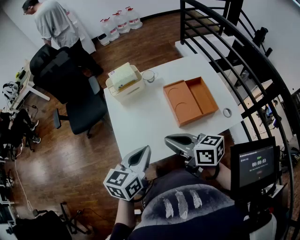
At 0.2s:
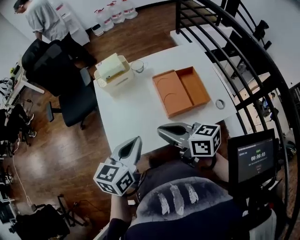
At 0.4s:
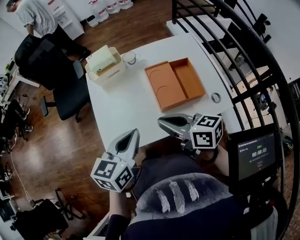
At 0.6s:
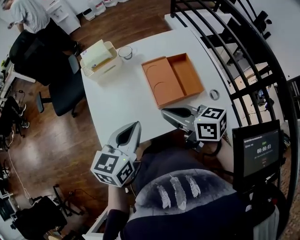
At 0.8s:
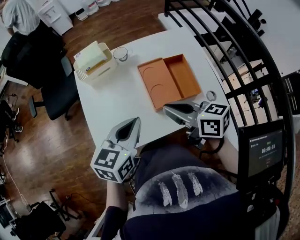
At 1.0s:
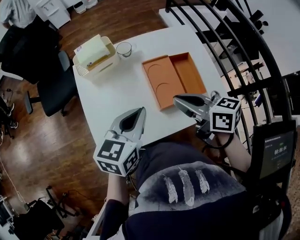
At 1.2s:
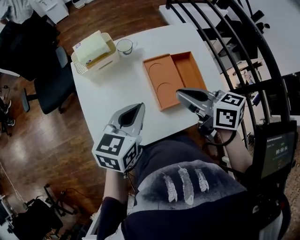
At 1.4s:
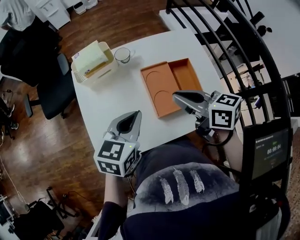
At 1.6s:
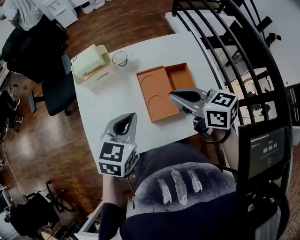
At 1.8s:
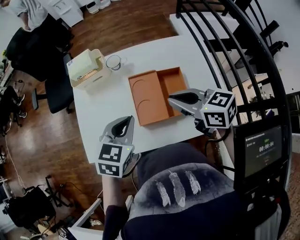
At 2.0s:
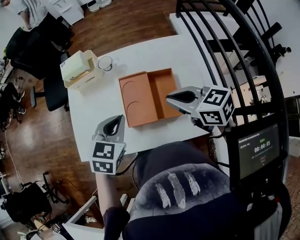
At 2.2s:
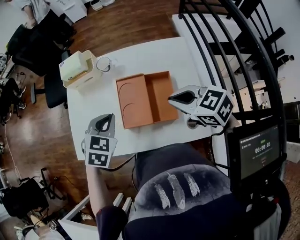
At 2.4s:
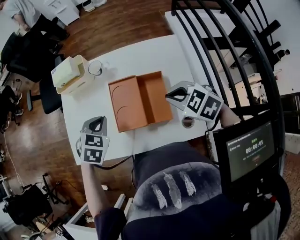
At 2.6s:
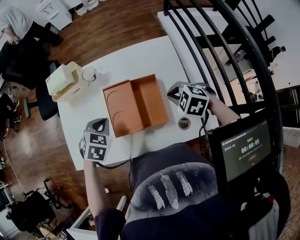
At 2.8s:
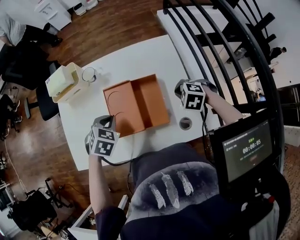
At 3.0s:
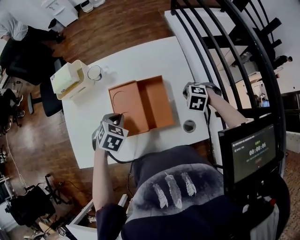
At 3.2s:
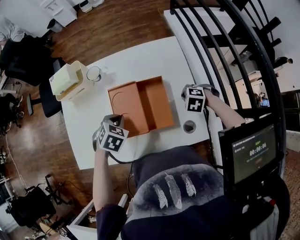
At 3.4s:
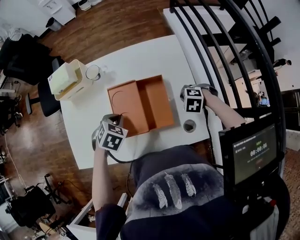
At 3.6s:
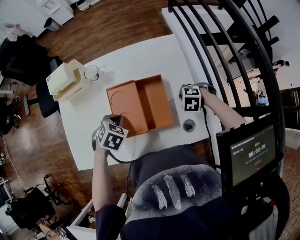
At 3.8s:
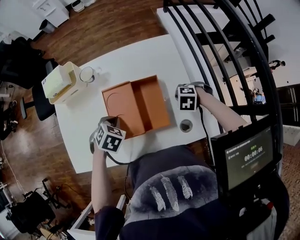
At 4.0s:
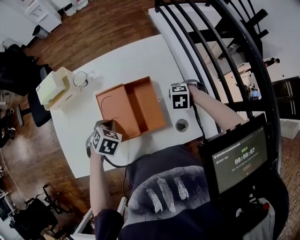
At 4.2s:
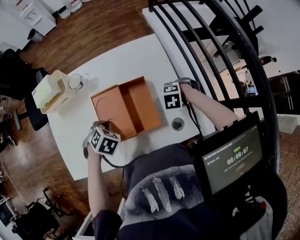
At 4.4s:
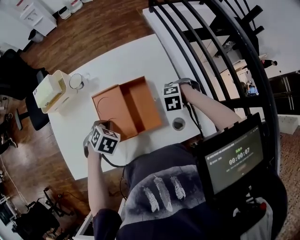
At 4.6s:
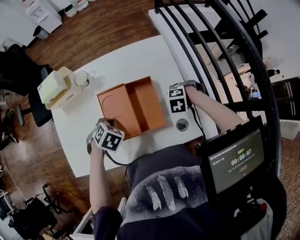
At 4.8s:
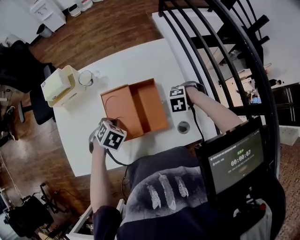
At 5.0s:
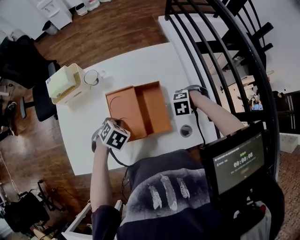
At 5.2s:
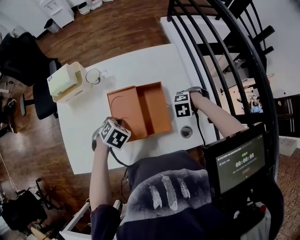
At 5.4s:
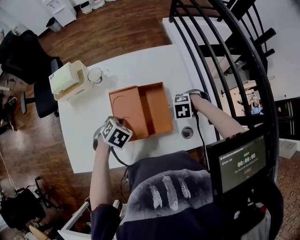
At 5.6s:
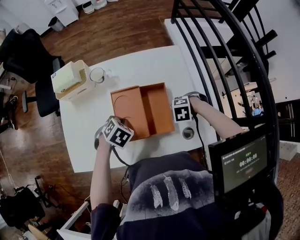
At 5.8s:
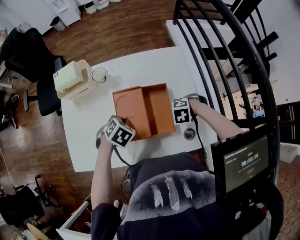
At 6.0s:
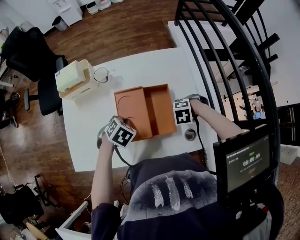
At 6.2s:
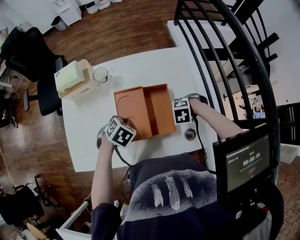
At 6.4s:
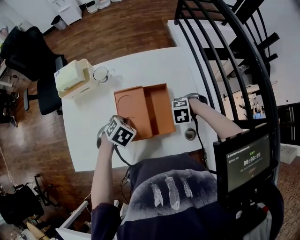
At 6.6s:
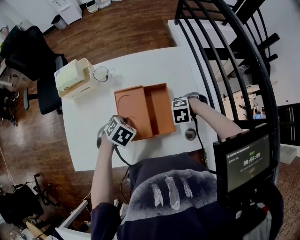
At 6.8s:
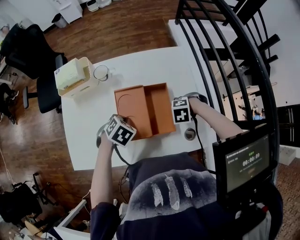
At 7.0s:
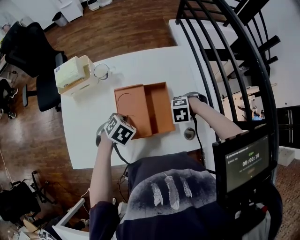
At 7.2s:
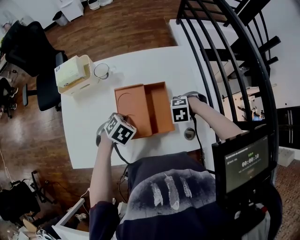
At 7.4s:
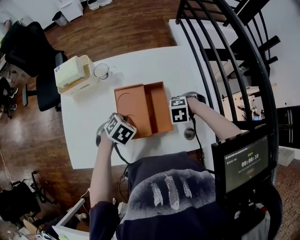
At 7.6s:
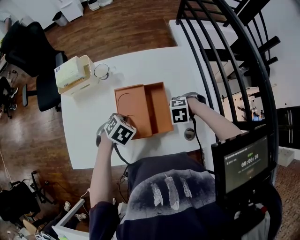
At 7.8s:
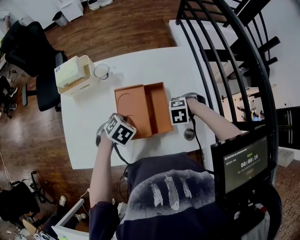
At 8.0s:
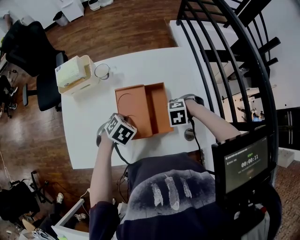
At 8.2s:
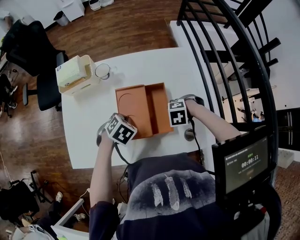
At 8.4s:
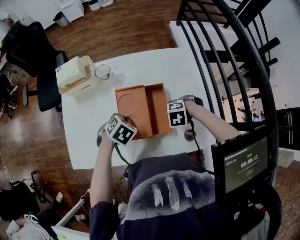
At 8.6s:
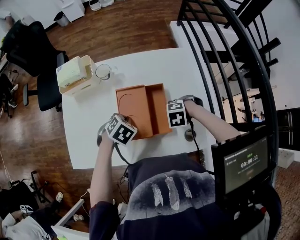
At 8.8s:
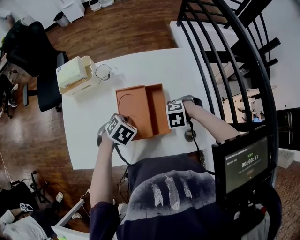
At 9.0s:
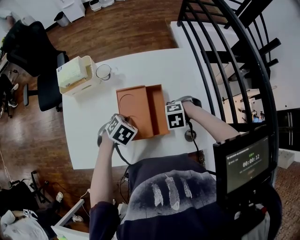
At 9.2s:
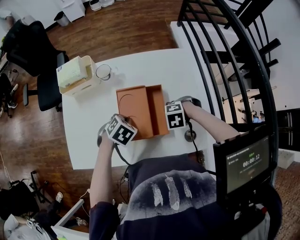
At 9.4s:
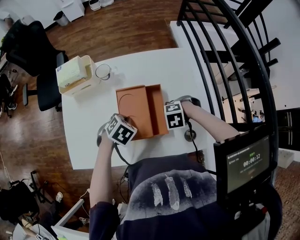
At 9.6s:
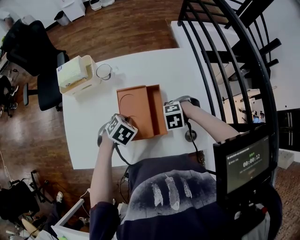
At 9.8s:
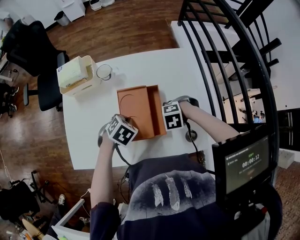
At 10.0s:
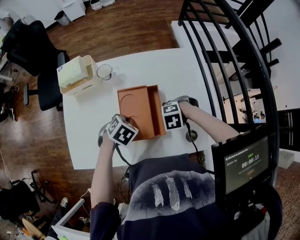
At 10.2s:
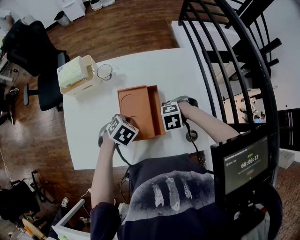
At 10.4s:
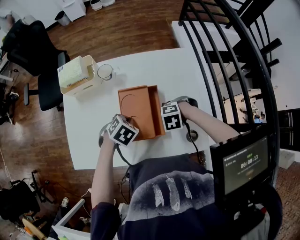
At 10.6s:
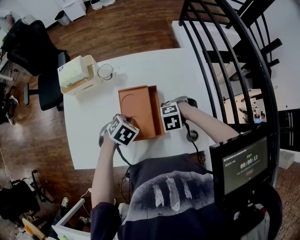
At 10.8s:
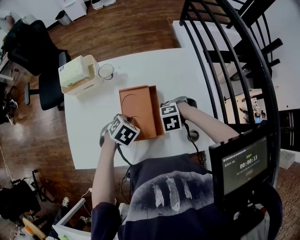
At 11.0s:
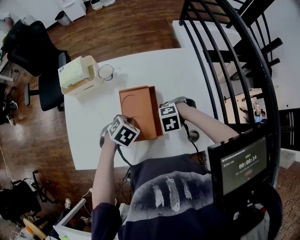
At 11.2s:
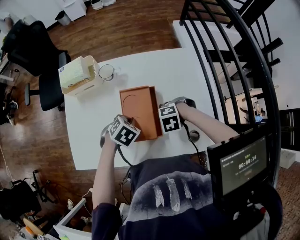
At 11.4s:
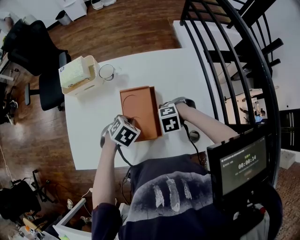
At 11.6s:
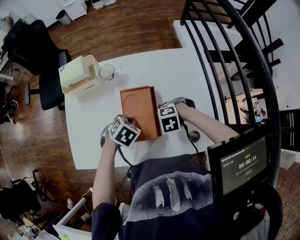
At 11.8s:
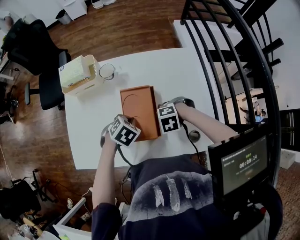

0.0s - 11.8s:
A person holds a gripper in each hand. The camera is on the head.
0.0s - 1.4s: The left gripper moves about 20 cm.
1.4s - 3.0s: The left gripper is displaced downward by some 15 cm, and tips its fingers downward by approximately 30 degrees.

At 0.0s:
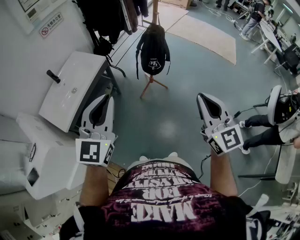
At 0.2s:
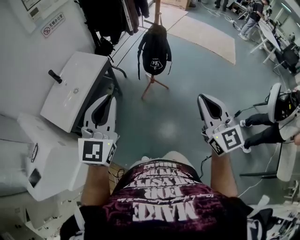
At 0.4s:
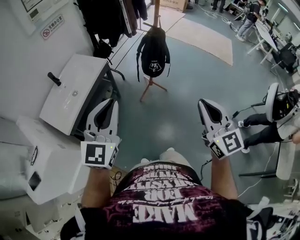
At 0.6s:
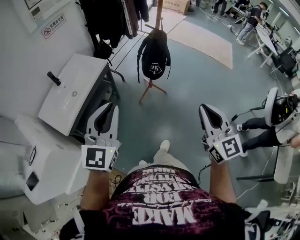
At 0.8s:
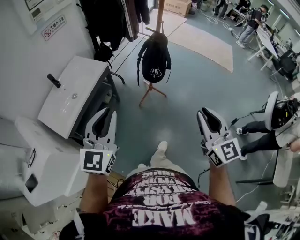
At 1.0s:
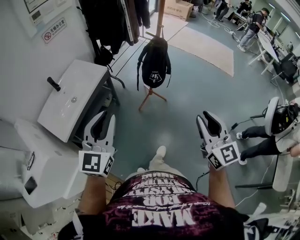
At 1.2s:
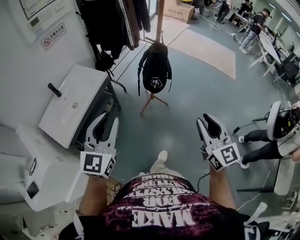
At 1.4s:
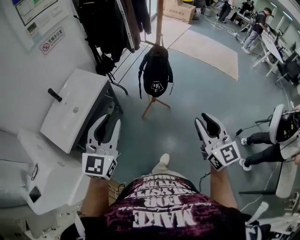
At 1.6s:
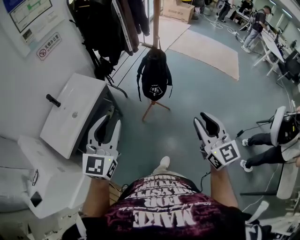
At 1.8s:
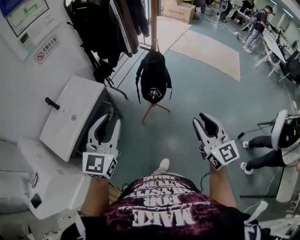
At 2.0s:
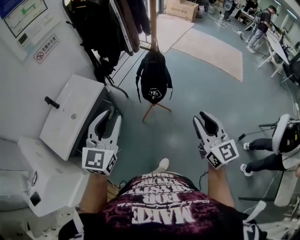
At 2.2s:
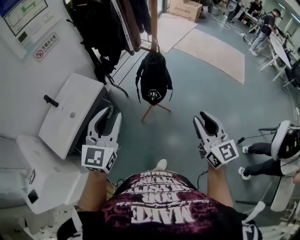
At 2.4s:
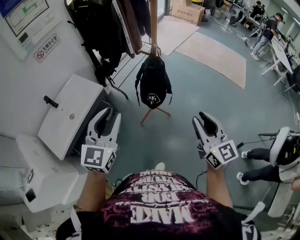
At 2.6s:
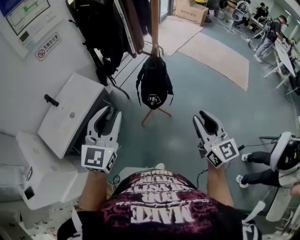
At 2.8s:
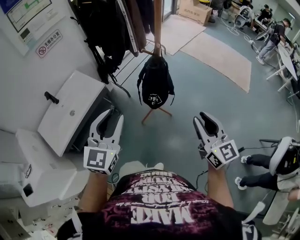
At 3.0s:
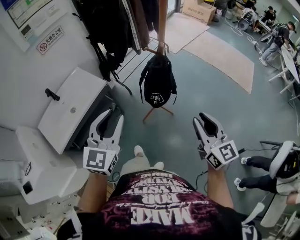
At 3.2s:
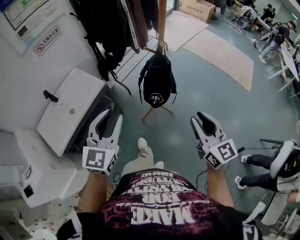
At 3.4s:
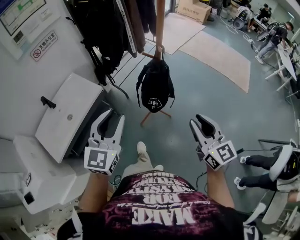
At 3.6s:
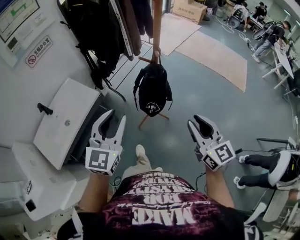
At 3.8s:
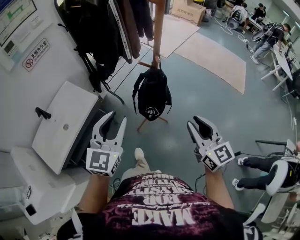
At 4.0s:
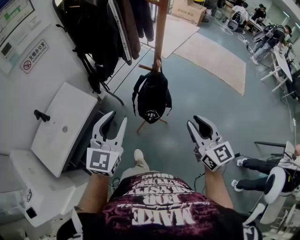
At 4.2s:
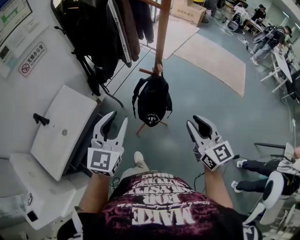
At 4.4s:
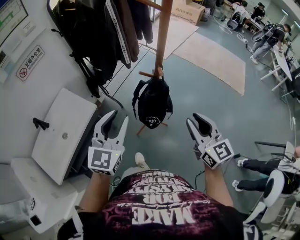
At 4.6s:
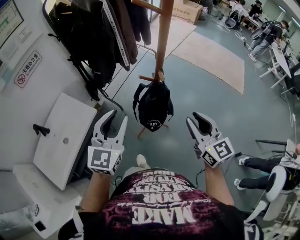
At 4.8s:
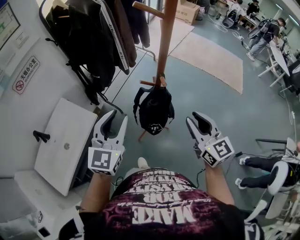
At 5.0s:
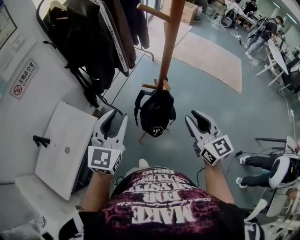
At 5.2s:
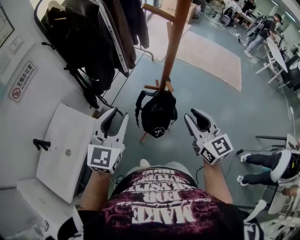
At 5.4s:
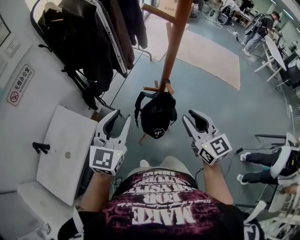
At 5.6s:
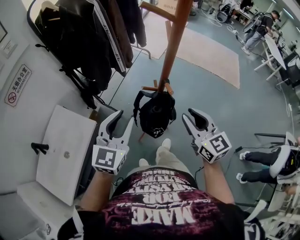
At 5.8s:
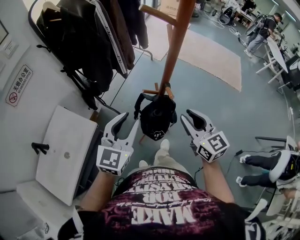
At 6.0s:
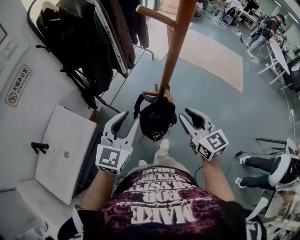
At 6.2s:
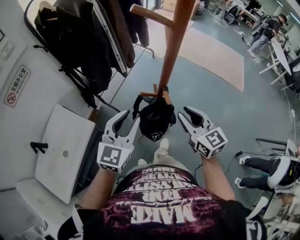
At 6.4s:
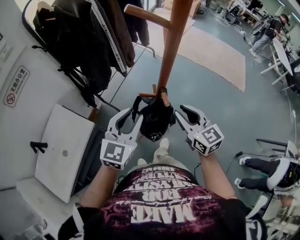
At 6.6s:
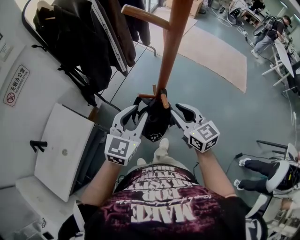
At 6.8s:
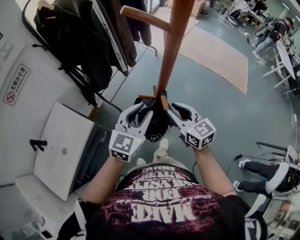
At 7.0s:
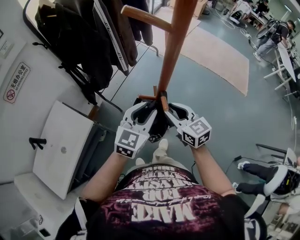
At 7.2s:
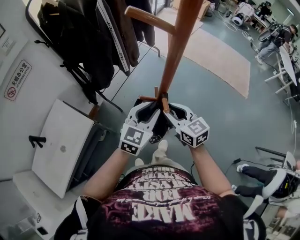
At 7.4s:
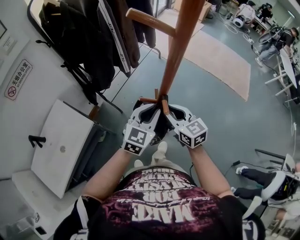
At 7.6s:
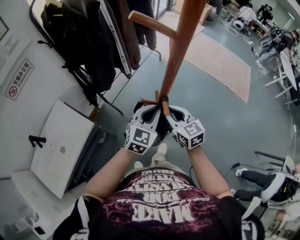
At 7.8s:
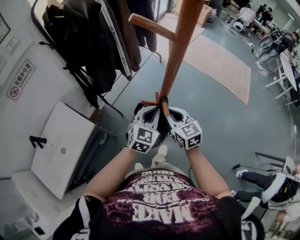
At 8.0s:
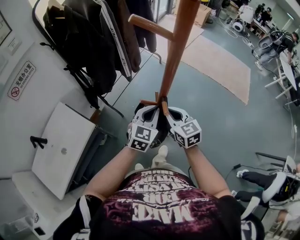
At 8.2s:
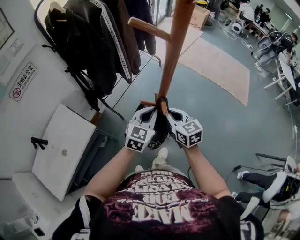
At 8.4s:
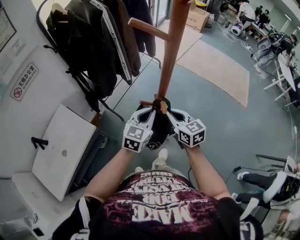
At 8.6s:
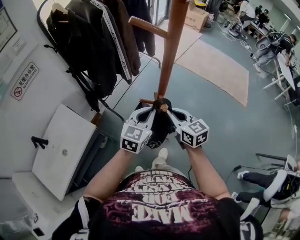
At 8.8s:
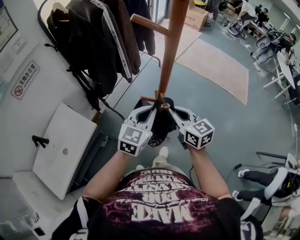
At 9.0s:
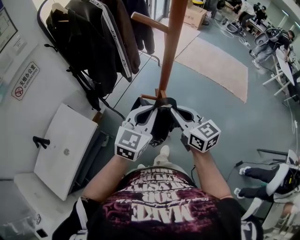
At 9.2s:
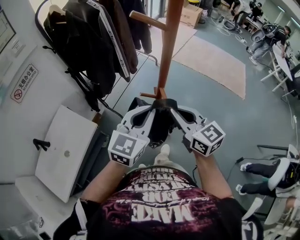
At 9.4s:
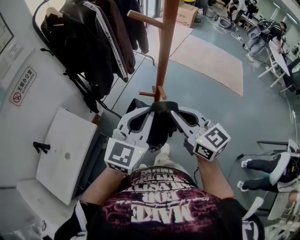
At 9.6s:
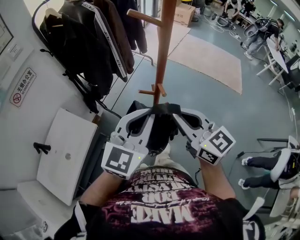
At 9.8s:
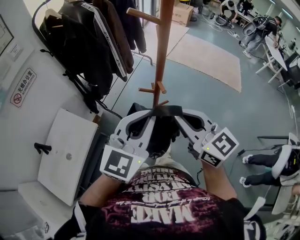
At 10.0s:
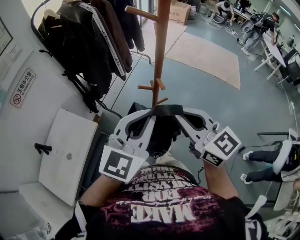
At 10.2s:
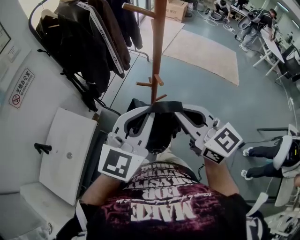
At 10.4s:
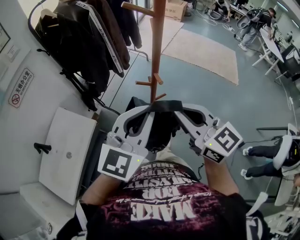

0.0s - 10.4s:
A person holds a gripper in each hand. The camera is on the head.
0.0s - 1.4s: Both grippers travel together forward, roughly 5 cm. The right gripper opens. Meanwhile the left gripper opens.
1.4s - 3.0s: Both grippers move forward and to the right, about 20 cm.
3.0s - 4.4s: Both grippers travel together forward, about 15 cm.
4.4s - 6.0s: The two grippers go about 15 cm forward.
6.0s - 7.4s: The right gripper travels forward and downward by some 10 cm. The left gripper goes roughly 15 cm to the right, forward and downward.
7.4s - 9.0s: The right gripper goes roughly 10 cm upward and backward. Meanwhile the left gripper goes about 10 cm upward.
9.0s - 10.4s: The grippers both shift backward and upward by about 15 cm.

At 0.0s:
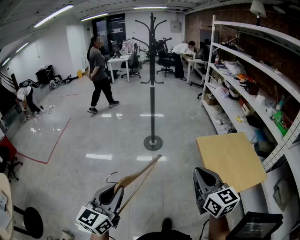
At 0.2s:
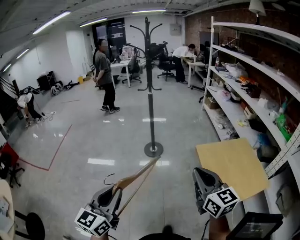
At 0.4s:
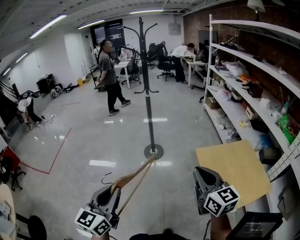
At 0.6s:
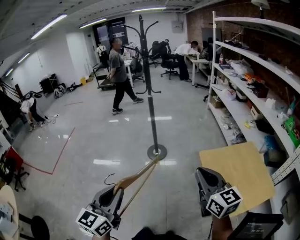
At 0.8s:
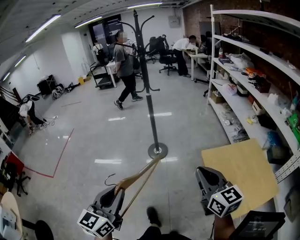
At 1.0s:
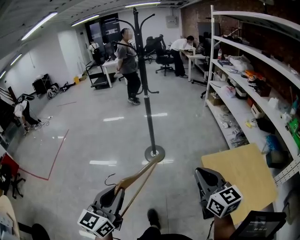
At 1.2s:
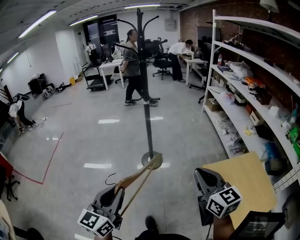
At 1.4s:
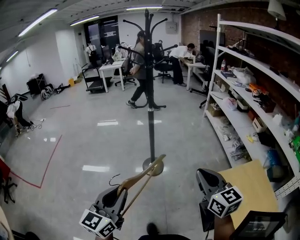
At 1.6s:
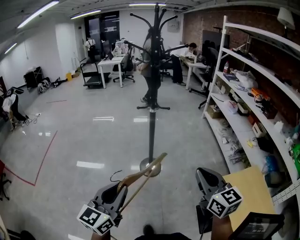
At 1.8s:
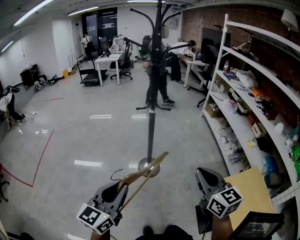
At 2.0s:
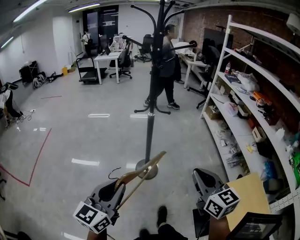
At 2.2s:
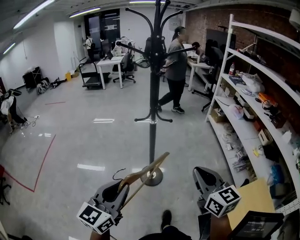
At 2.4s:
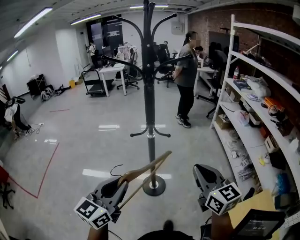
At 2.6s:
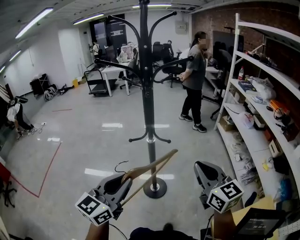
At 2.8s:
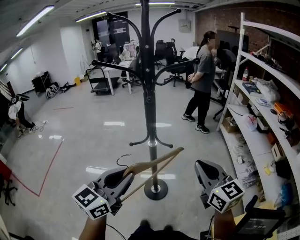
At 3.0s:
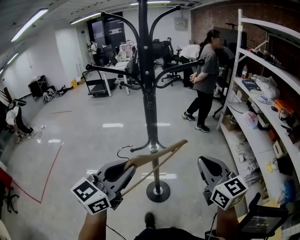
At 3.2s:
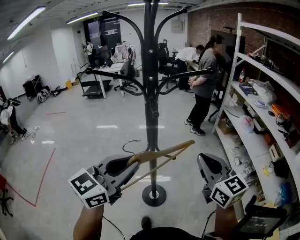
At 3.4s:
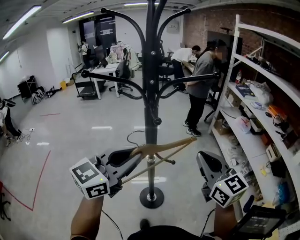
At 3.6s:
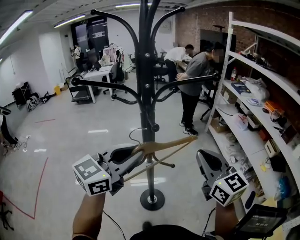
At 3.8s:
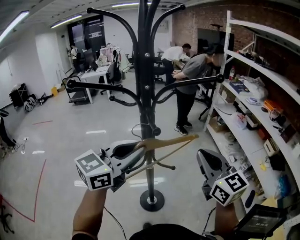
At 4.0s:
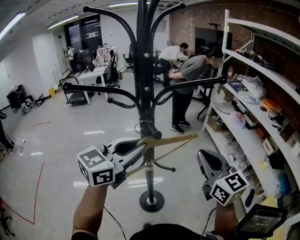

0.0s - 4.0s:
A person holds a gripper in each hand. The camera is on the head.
0.0s - 1.4s: Both grippers move forward, roughly 35 cm.
1.4s - 2.6s: The grippers both shift forward by about 30 cm.
2.6s - 4.0s: The left gripper shifts roughly 25 cm forward, and swivels about 30 degrees. Meanwhile the right gripper is displaced forward by about 15 cm.
